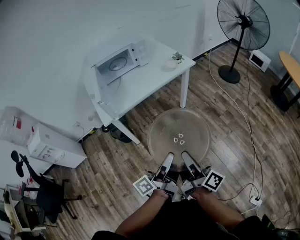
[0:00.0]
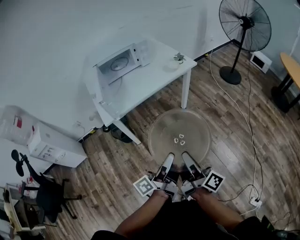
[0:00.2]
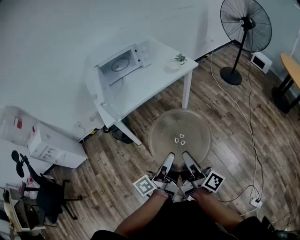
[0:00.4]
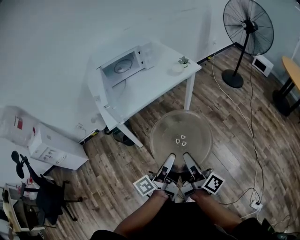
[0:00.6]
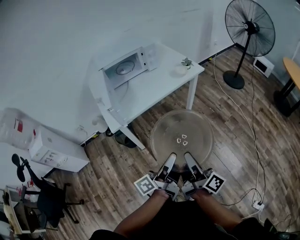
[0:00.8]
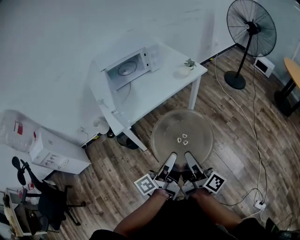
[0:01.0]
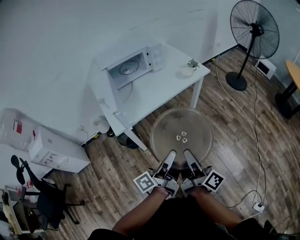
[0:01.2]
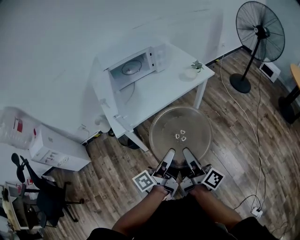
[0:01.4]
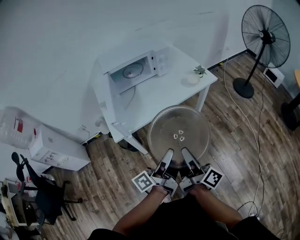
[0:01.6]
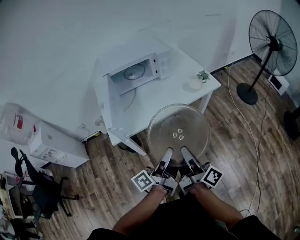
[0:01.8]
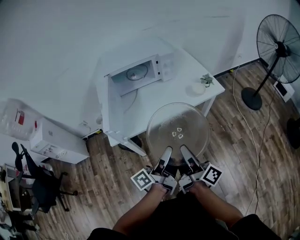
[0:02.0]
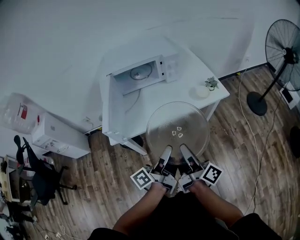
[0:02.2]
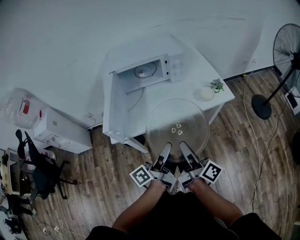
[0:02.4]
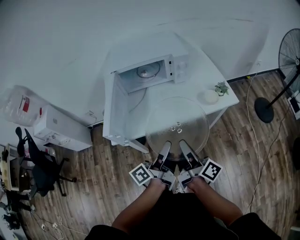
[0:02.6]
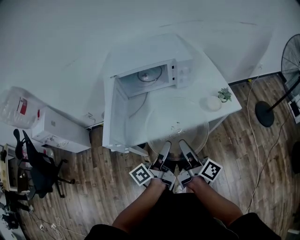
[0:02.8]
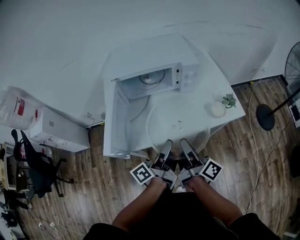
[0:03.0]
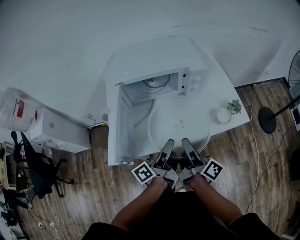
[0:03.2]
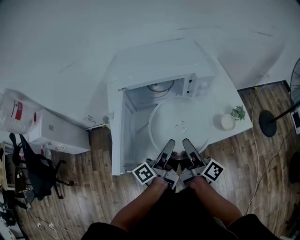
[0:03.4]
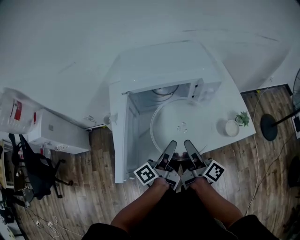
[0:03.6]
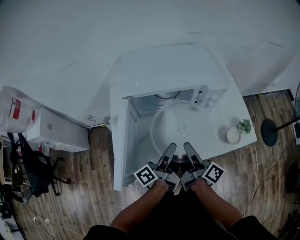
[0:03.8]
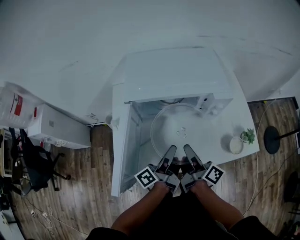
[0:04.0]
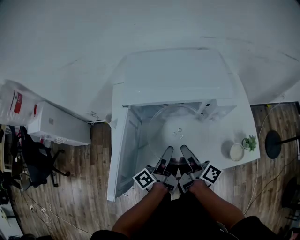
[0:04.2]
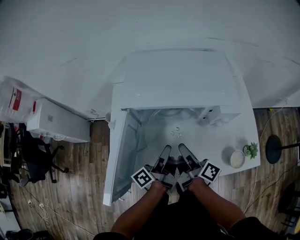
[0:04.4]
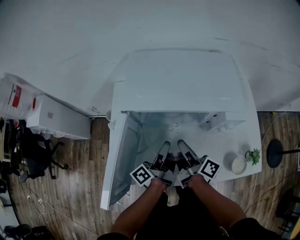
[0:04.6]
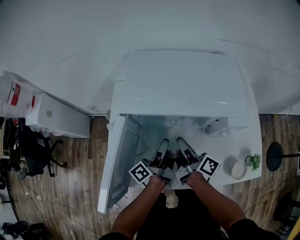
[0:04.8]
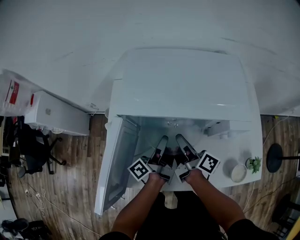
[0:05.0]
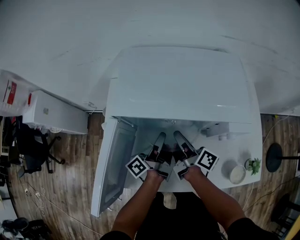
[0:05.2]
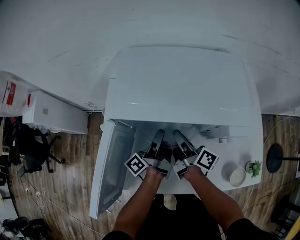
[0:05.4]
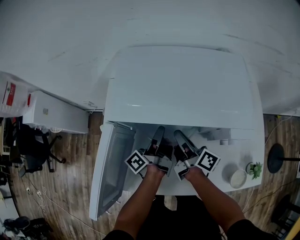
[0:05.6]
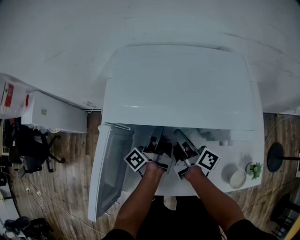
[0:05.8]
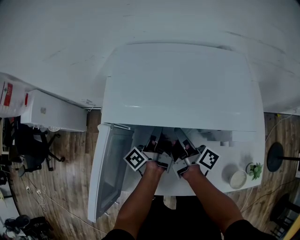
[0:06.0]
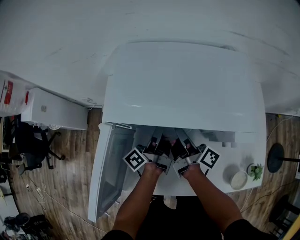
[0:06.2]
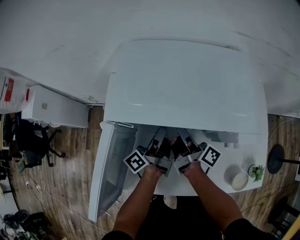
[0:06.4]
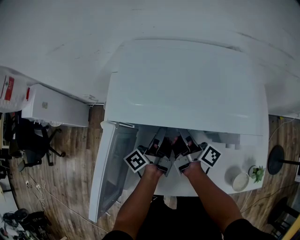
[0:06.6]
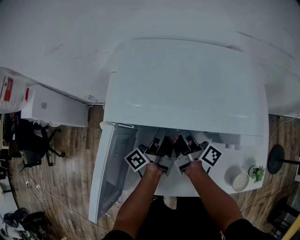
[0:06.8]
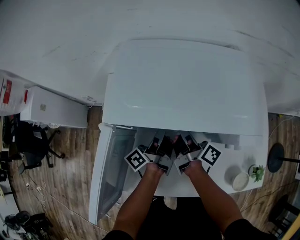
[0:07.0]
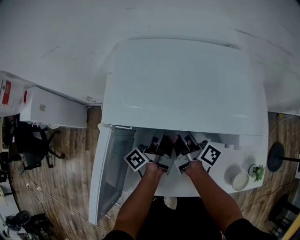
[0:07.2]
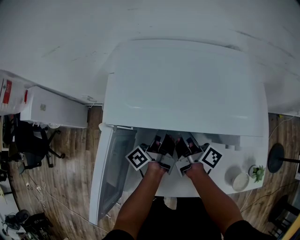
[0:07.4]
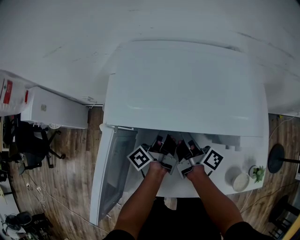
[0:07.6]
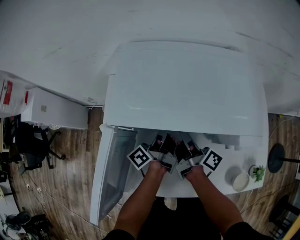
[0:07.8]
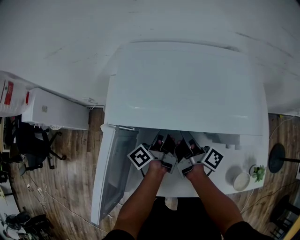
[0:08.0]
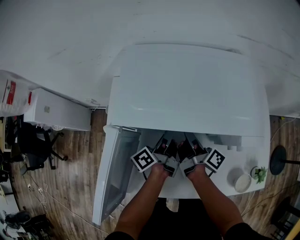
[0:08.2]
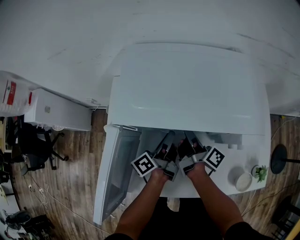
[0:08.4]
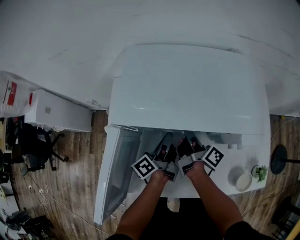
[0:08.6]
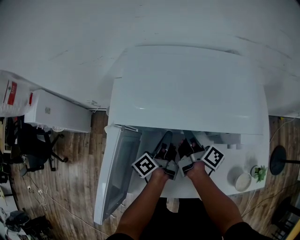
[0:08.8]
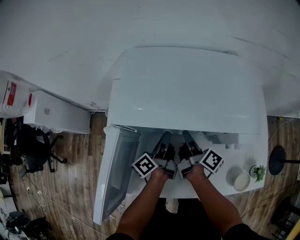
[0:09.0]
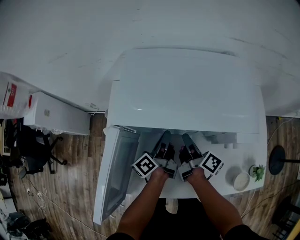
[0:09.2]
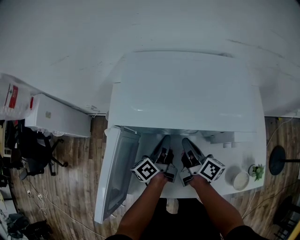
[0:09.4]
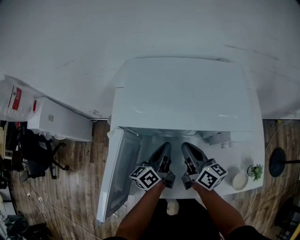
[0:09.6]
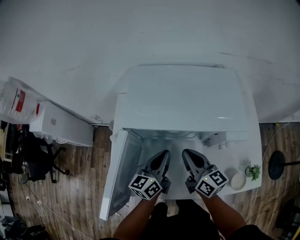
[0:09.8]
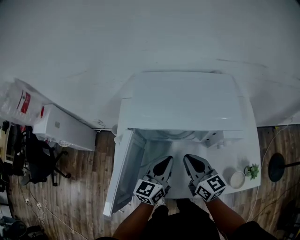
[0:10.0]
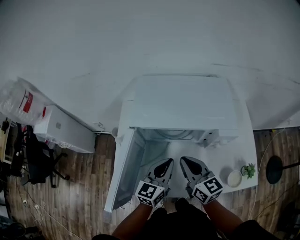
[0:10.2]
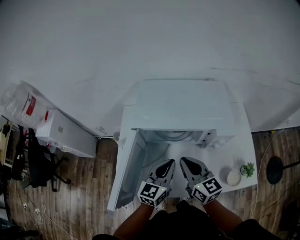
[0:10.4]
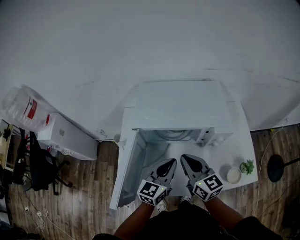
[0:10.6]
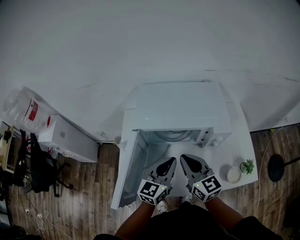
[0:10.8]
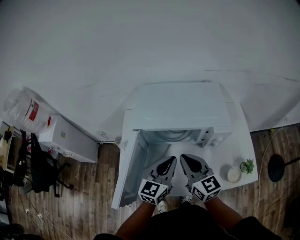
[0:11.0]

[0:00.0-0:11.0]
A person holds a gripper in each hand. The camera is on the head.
0.0 to 1.6 s: The right gripper moves roughly 20 cm.
1.6 to 3.2 s: The right gripper moves roughly 30 cm.
3.2 to 4.8 s: The right gripper moves about 30 cm, and changes its angle by some 20 degrees.
4.8 to 6.2 s: The right gripper shifts by approximately 10 cm.
9.4 to 11.0 s: The right gripper travels upward by about 15 cm, and rotates around the line of its fingers by roughly 60 degrees, counterclockwise from behind.

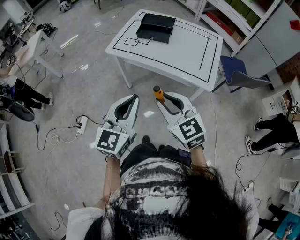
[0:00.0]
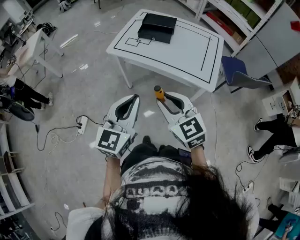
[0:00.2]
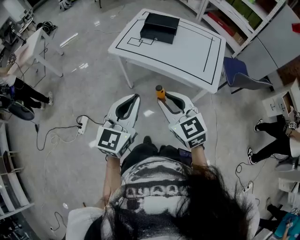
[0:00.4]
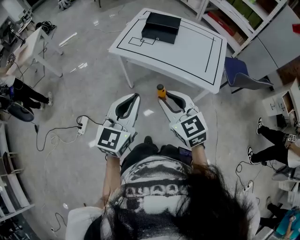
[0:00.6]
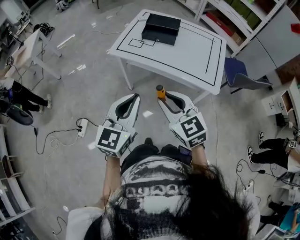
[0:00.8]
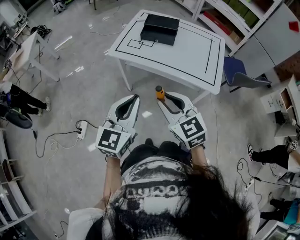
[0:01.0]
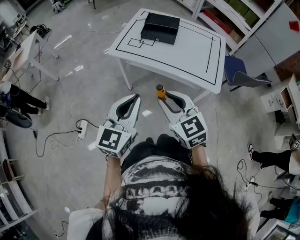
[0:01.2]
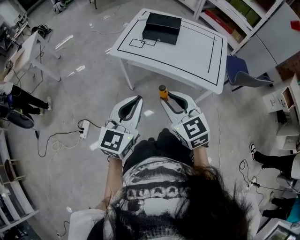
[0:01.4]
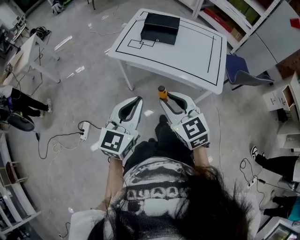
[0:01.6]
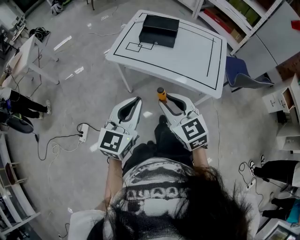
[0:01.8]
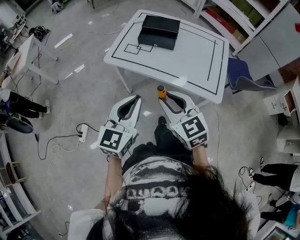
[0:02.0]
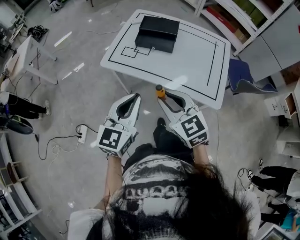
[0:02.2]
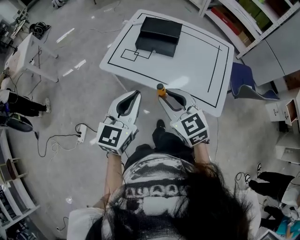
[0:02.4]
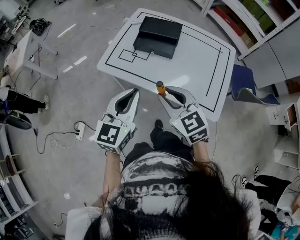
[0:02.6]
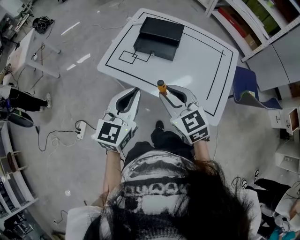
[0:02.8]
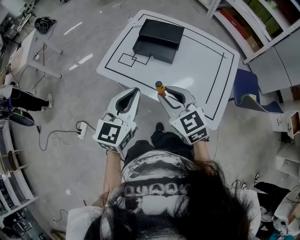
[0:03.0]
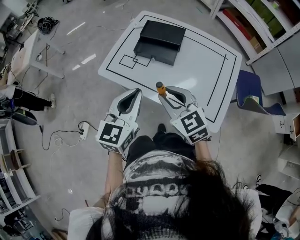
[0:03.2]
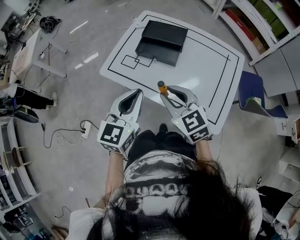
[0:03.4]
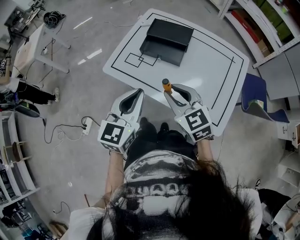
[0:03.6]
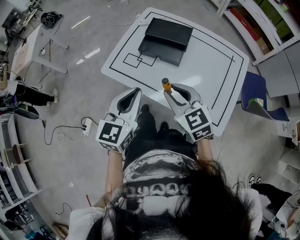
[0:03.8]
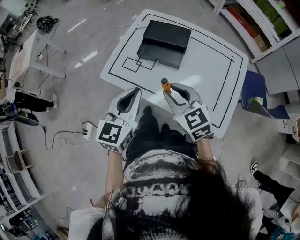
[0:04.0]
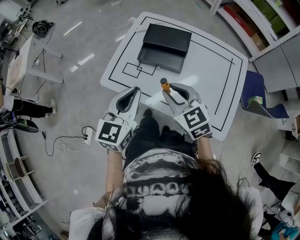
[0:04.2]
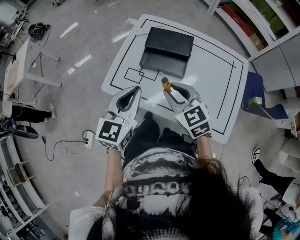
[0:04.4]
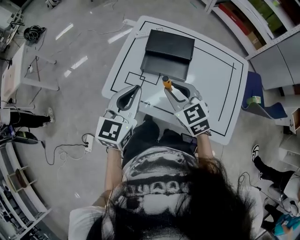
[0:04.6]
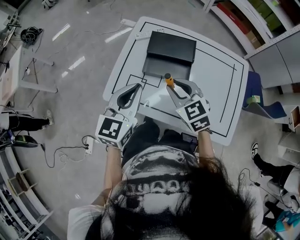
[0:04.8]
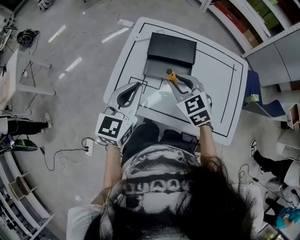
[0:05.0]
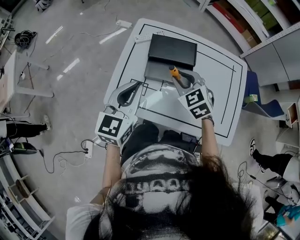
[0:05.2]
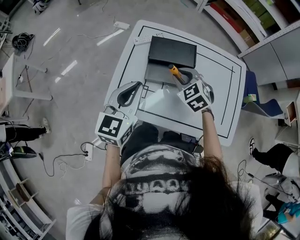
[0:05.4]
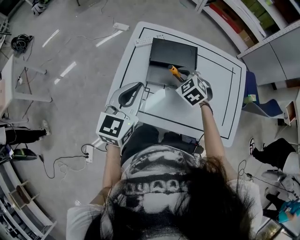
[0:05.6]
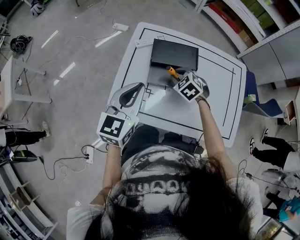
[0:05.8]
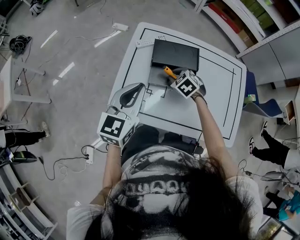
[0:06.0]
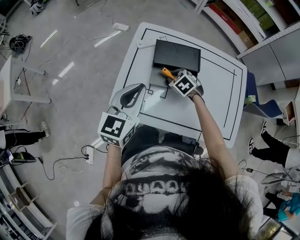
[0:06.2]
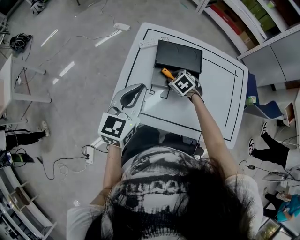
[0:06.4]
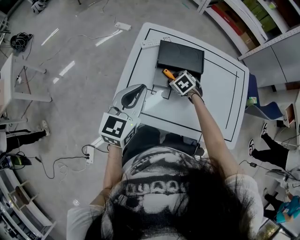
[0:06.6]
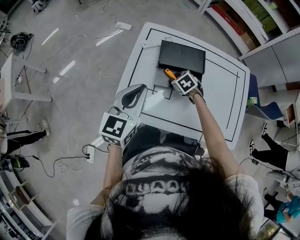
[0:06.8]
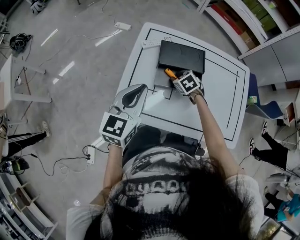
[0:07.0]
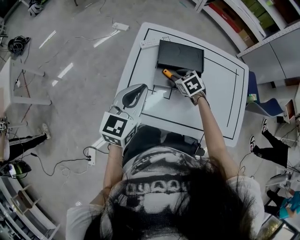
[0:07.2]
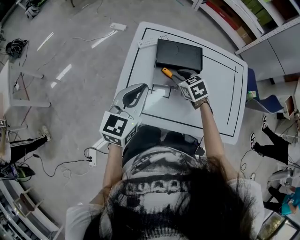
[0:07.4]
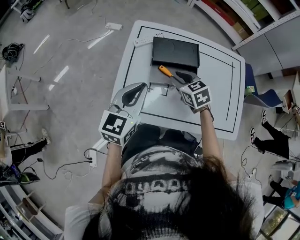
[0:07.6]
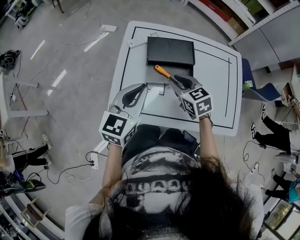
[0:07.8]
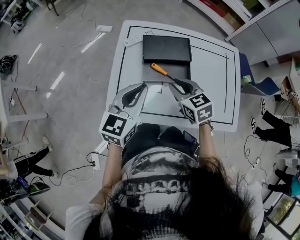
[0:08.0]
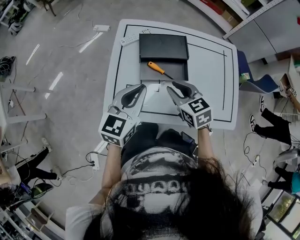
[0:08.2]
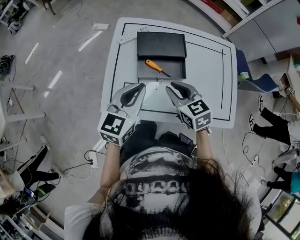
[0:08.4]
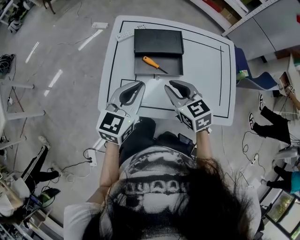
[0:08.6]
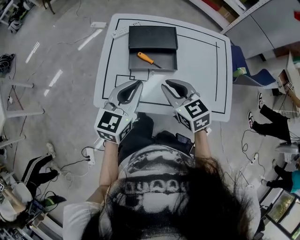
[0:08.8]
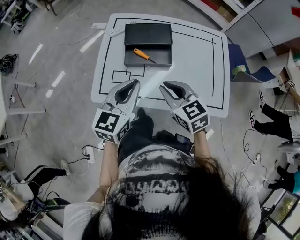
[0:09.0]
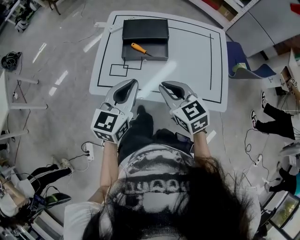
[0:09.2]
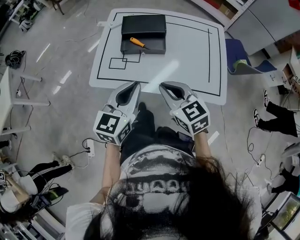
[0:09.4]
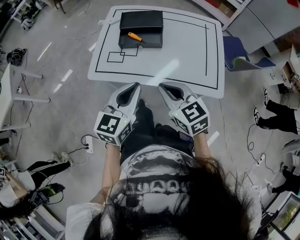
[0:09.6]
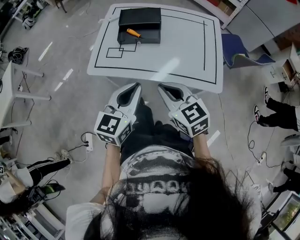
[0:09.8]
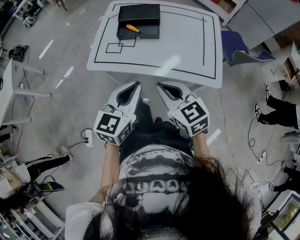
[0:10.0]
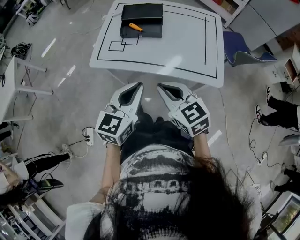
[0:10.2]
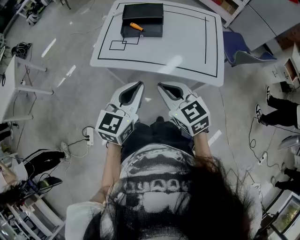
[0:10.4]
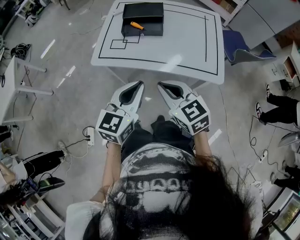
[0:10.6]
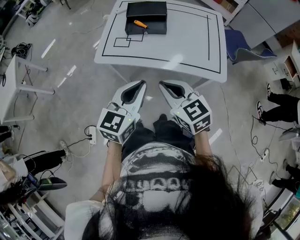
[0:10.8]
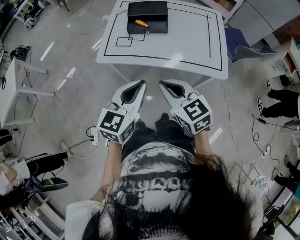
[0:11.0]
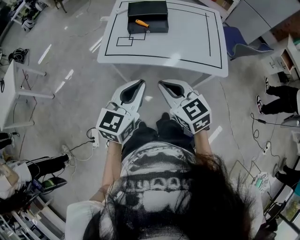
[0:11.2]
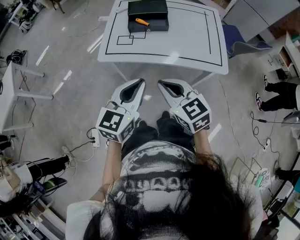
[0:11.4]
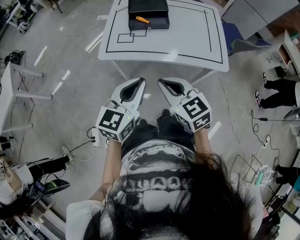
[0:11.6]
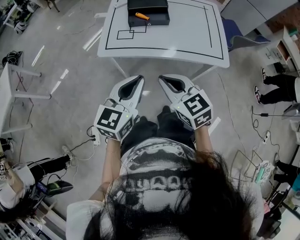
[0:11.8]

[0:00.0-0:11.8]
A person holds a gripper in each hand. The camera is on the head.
0.0 to 1.4 s: Both grippers travel together to the left and forward, some 10 cm.
1.4 to 3.0 s: Both grippers move forward and to the right, some 30 cm.
3.0 to 4.4 s: The two grippers go approximately 15 cm forward.
4.4 to 6.0 s: The right gripper moves forward and downward, approximately 25 cm, and tips its fingers downward by approximately 30 degrees, while the left gripper heads forward and to the left, covering about 15 cm.
6.0 to 7.4 s: The right gripper rotates some 20 degrees.
7.4 to 8.8 s: The right gripper goes roughly 20 cm backward and upward; the left gripper moves to the right and backward, some 10 cm.
8.8 to 10.4 s: The grippers both shift backward by roughly 30 cm.
10.4 to 11.8 s: The two grippers go about 10 cm to the left.

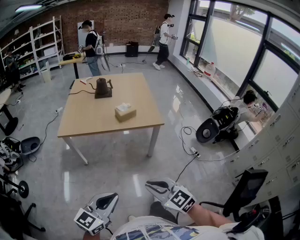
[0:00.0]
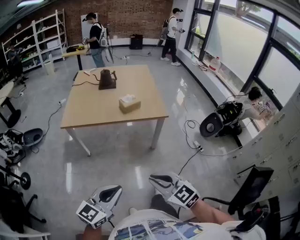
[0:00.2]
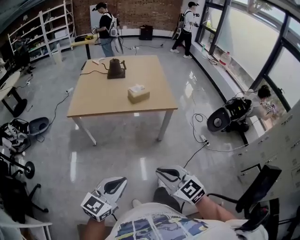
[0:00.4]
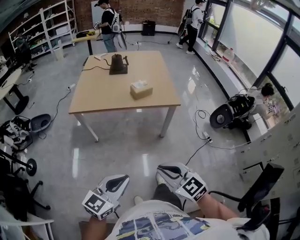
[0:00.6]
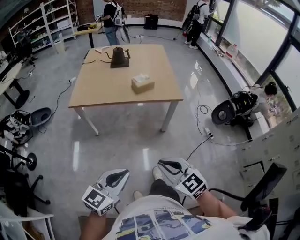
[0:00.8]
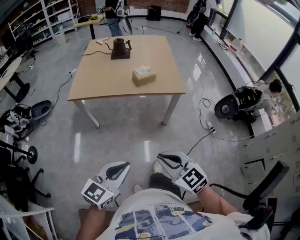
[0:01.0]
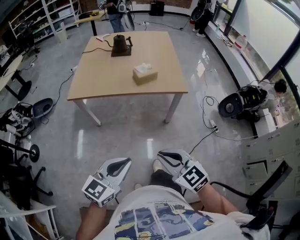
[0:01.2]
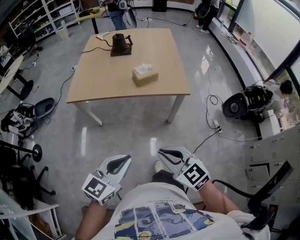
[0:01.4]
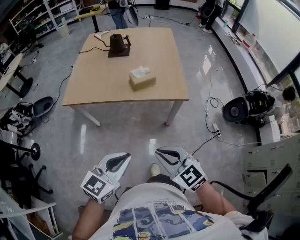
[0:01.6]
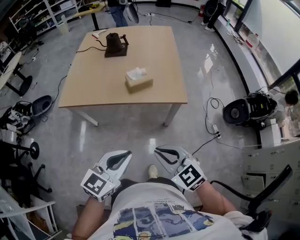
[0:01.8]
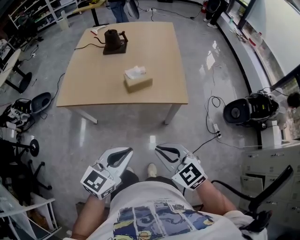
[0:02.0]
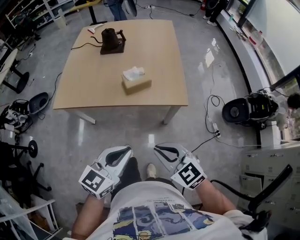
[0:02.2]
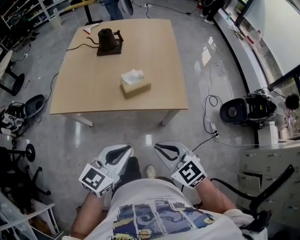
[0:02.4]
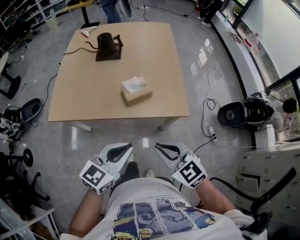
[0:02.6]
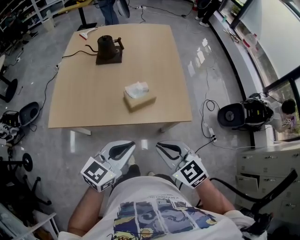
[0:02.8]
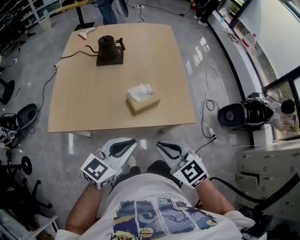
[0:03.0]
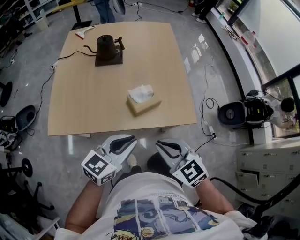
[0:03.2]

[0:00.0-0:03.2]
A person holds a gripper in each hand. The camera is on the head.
0.0 to 1.6 s: The right gripper is displaced forward by approximately 20 cm. Meanwhile the left gripper travels forward and to the right by approximately 25 cm.
1.6 to 3.2 s: Both grippers move forward, some 30 cm.
